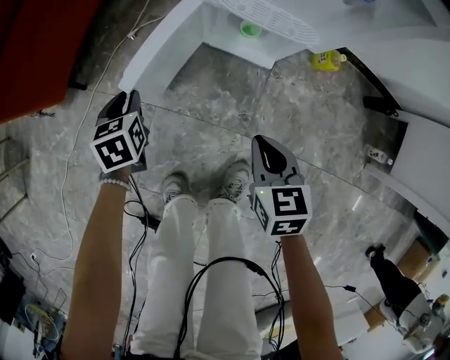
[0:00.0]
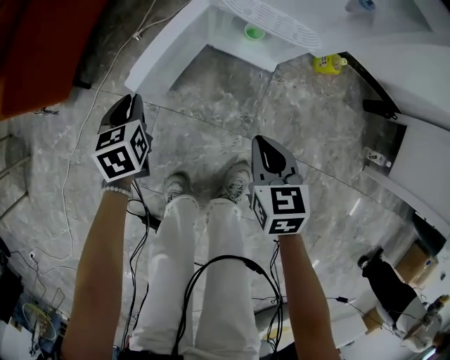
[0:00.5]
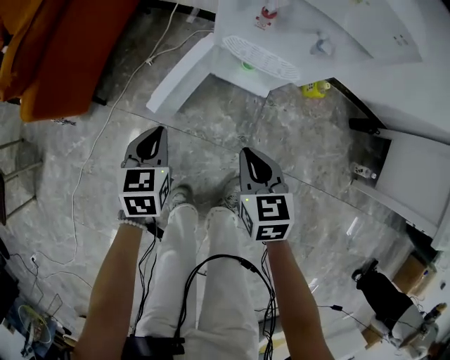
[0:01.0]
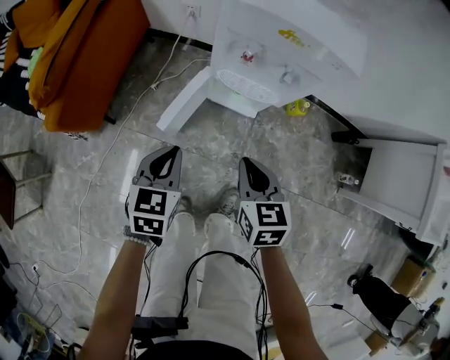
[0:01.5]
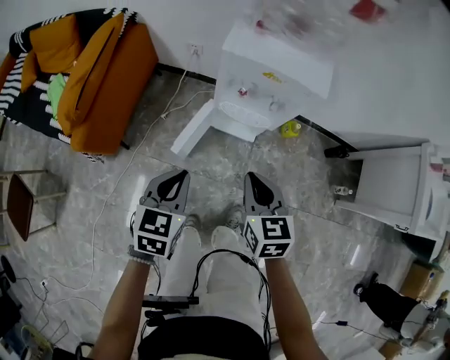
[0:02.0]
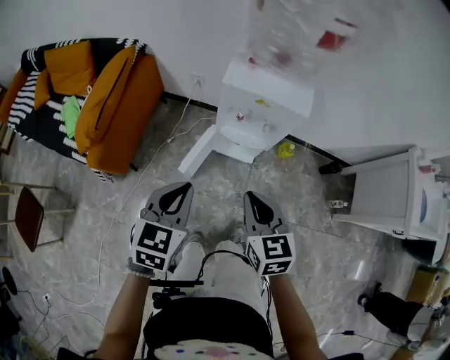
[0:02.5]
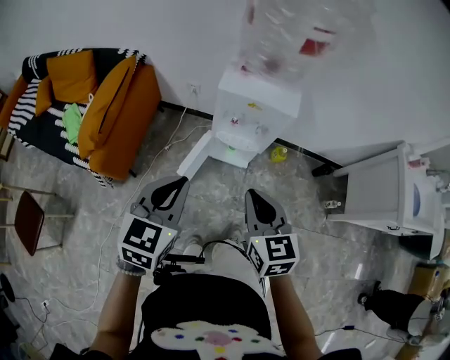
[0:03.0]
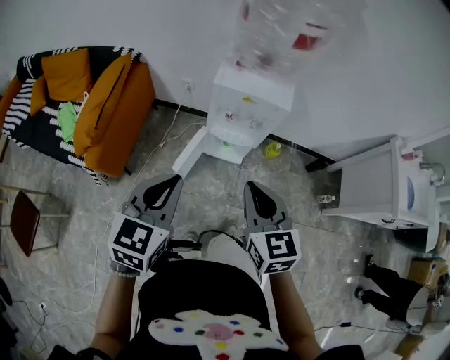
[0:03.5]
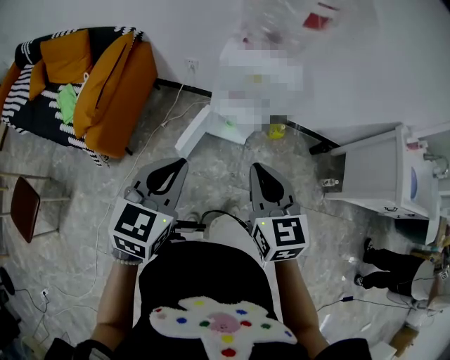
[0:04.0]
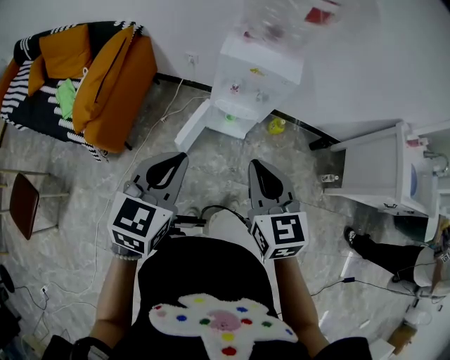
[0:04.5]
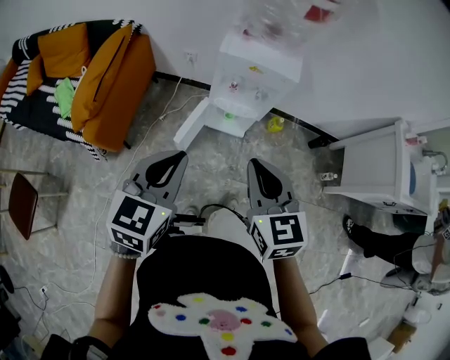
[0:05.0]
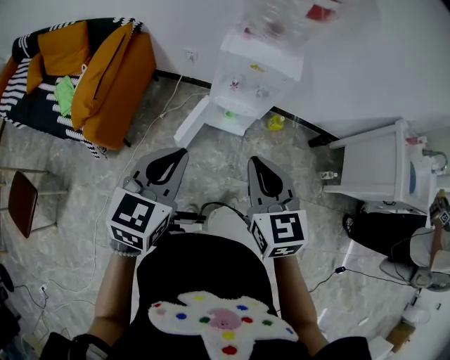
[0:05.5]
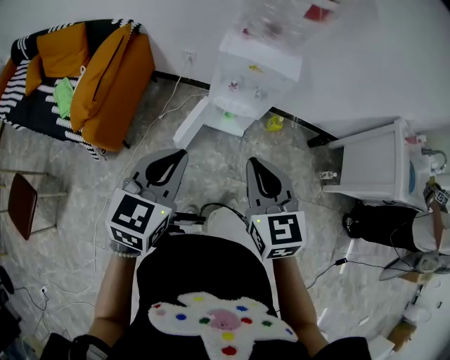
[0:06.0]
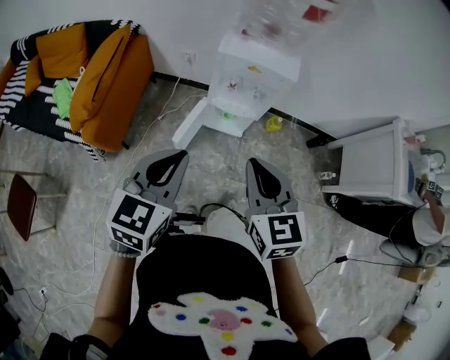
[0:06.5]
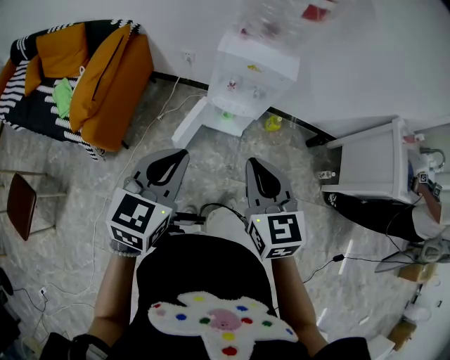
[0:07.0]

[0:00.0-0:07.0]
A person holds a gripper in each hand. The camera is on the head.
0:00.0 to 0:02.0: Both grippers move upward, approximately 35 cm. The left gripper rotates some 30 degrees.
0:02.0 to 0:03.5: Both grippers travel together upward, approximately 20 cm.
0:03.5 to 0:05.0: The grippers stay close to where they were, moving slightly.
0:05.0 to 0:07.0: Neither gripper changes place.

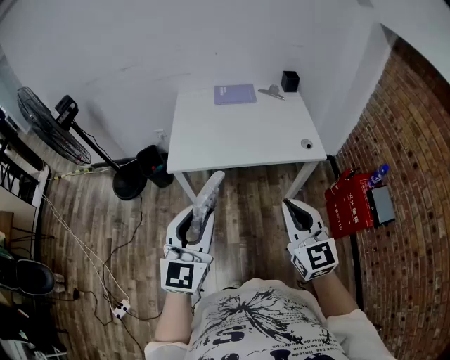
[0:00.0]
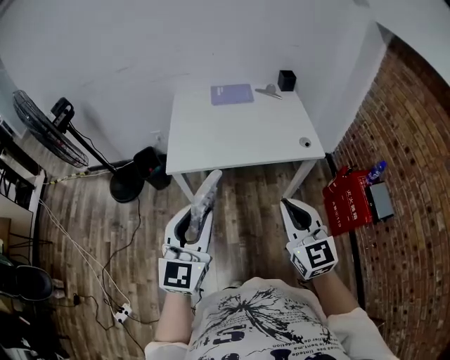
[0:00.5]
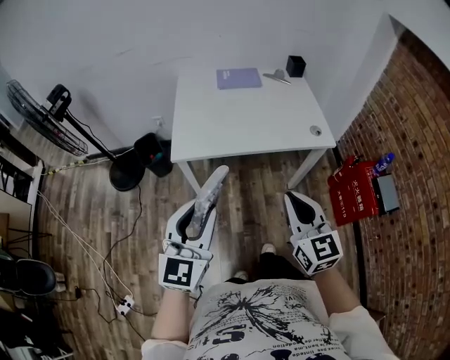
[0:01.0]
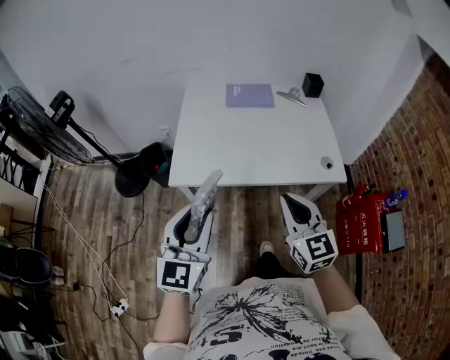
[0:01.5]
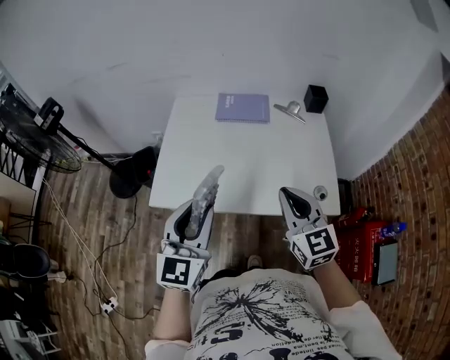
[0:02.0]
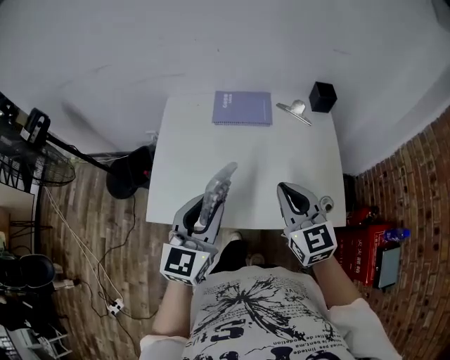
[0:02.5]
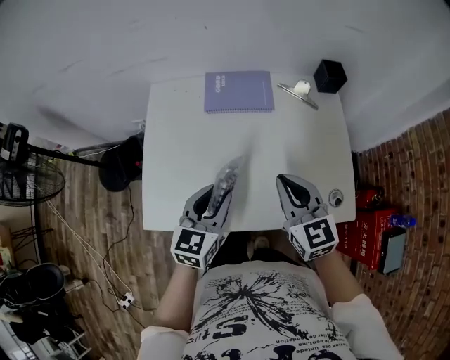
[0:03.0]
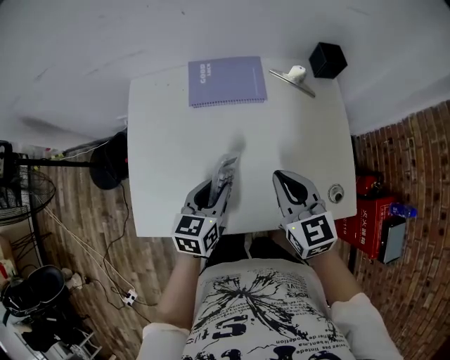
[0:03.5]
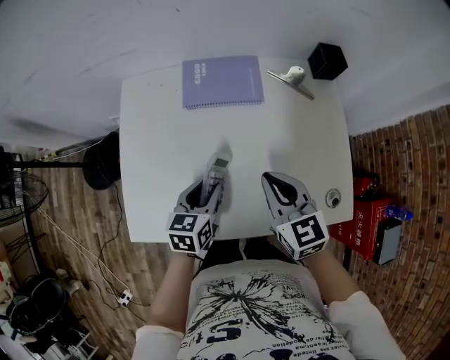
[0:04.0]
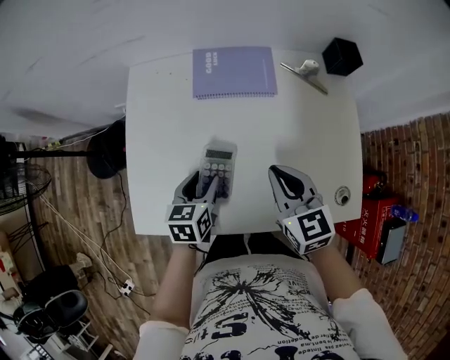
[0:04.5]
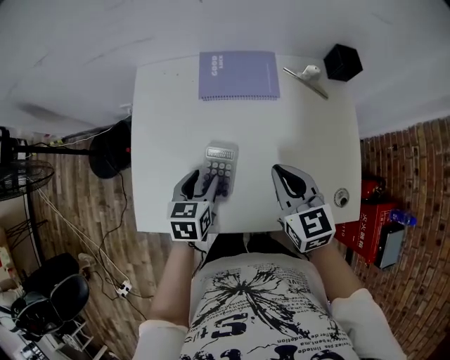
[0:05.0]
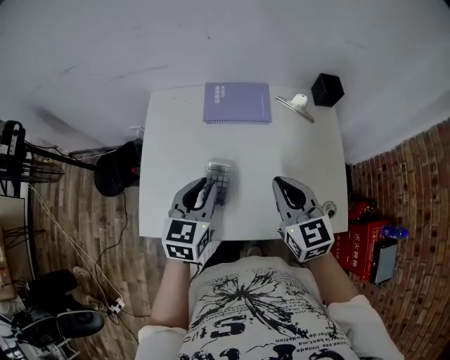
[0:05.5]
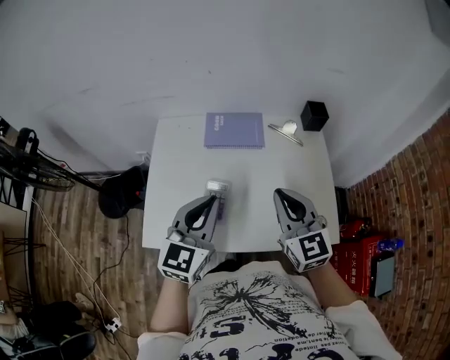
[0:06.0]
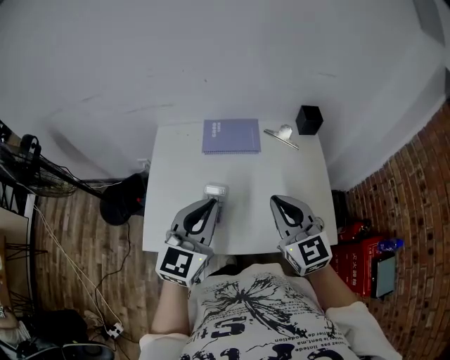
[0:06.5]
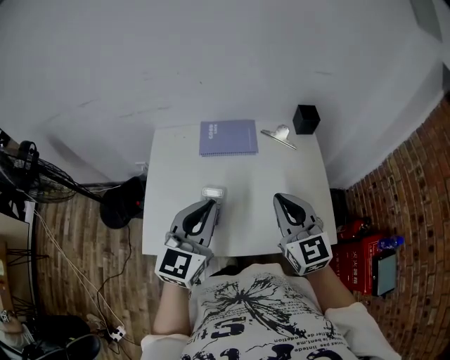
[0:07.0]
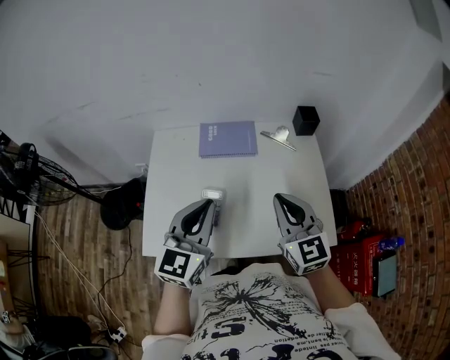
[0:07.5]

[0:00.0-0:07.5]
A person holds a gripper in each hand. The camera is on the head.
0:00.0 to 0:02.0: Both grippers travel together forward, about 30 cm.
0:02.0 to 0:04.0: Both grippers travel together forward and downward, about 30 cm. The left gripper tilts its fingers approximately 30 degrees downward.
0:04.0 to 0:05.5: The right gripper is displaced upward by about 5 cm; the left gripper travels upward by some 15 cm.
0:05.5 to 0:07.5: The left gripper is displaced upward by about 15 cm, and rotates roughly 20 degrees. The right gripper shifts approximately 10 cm upward.

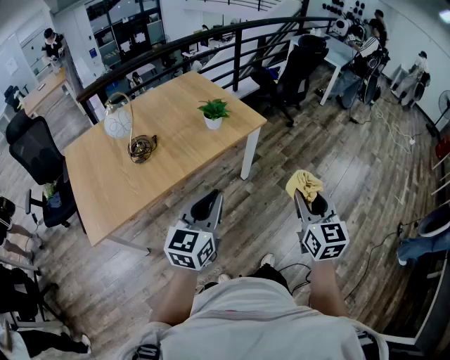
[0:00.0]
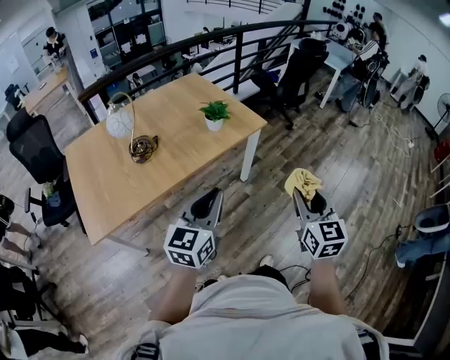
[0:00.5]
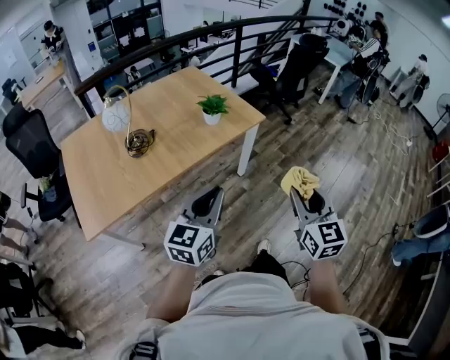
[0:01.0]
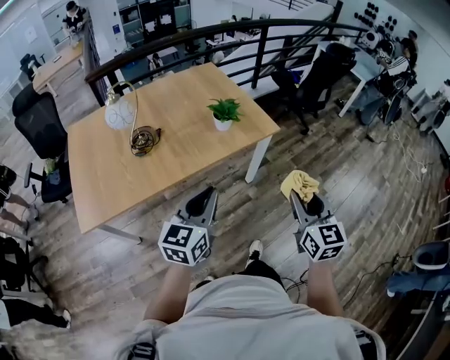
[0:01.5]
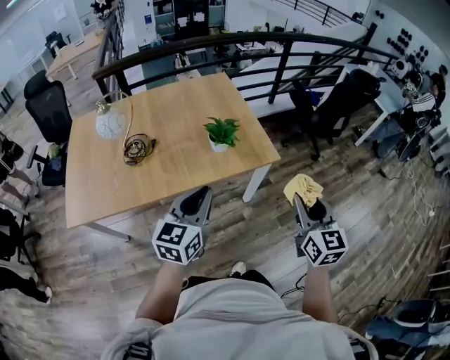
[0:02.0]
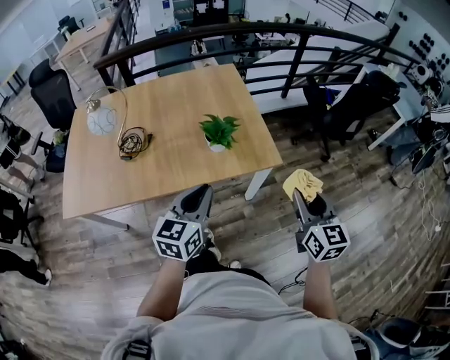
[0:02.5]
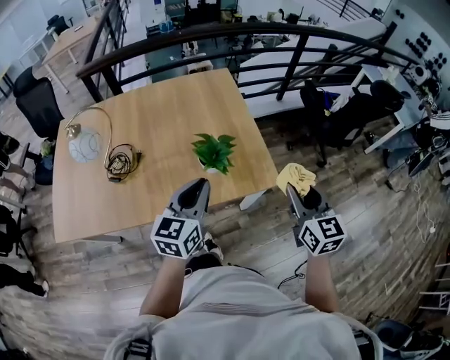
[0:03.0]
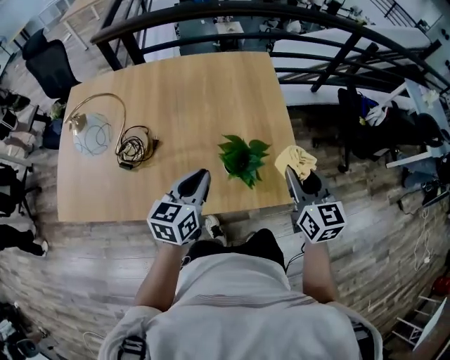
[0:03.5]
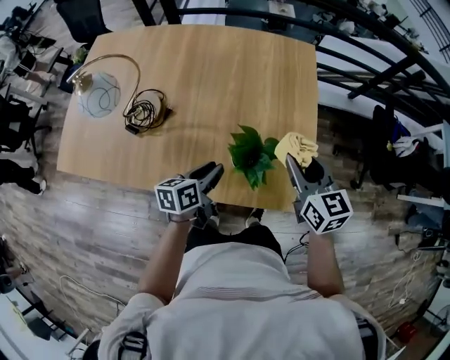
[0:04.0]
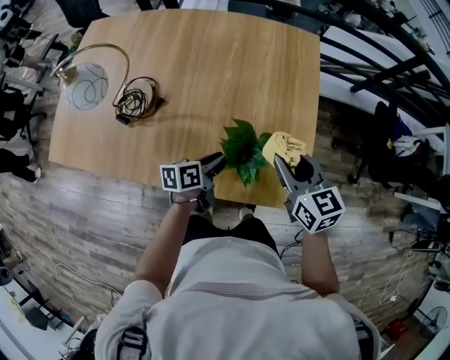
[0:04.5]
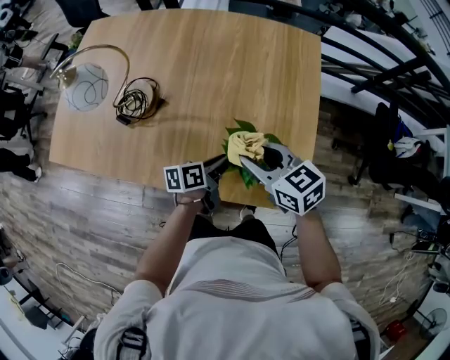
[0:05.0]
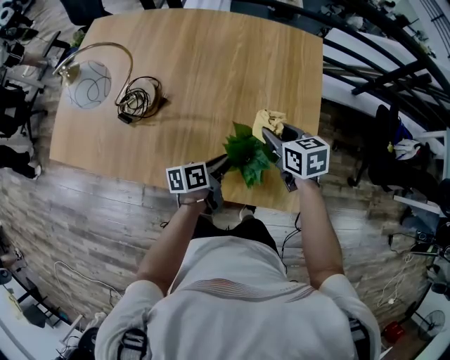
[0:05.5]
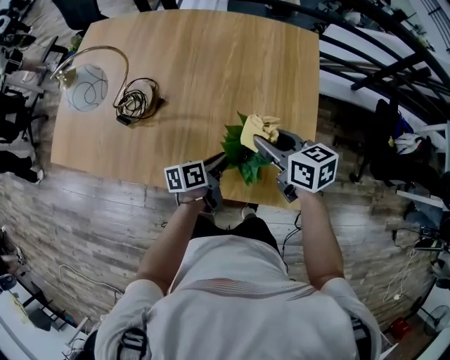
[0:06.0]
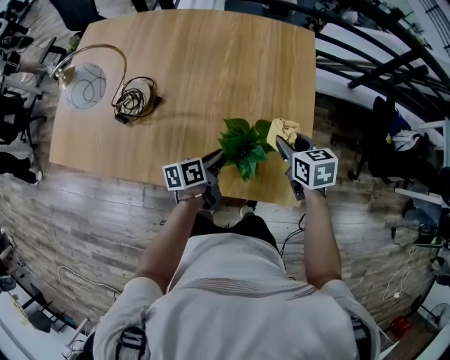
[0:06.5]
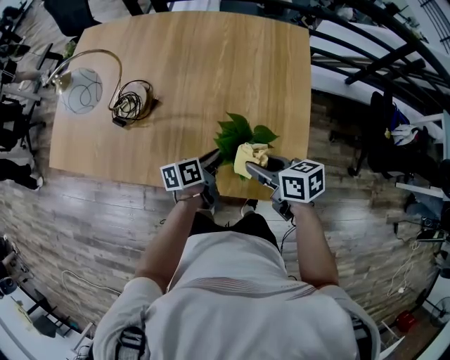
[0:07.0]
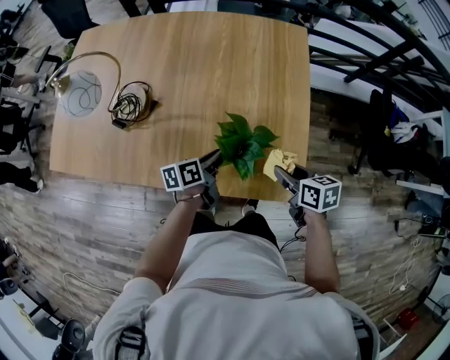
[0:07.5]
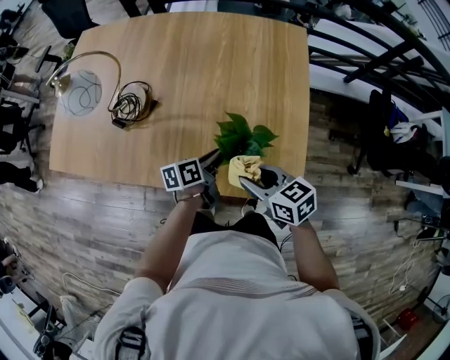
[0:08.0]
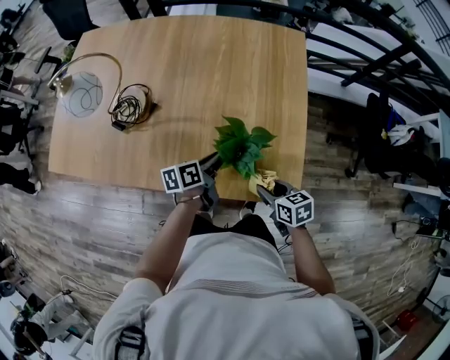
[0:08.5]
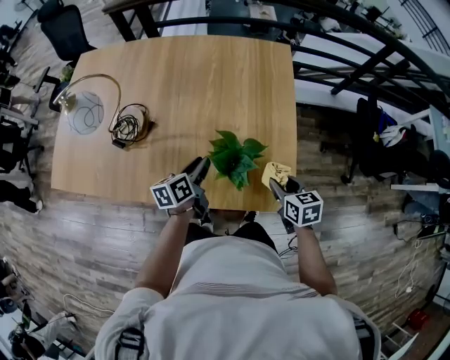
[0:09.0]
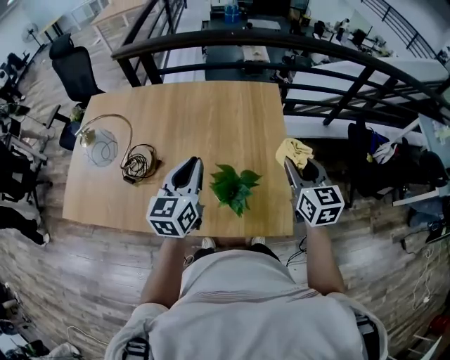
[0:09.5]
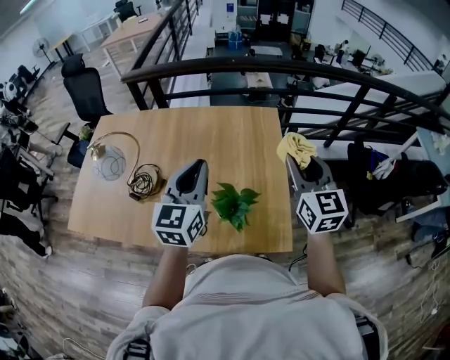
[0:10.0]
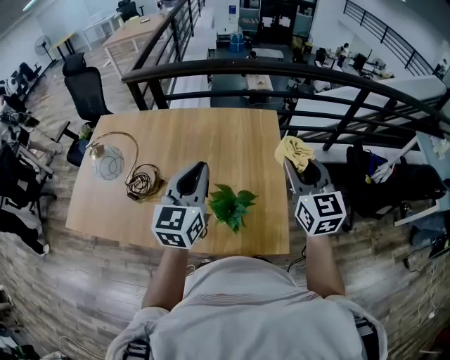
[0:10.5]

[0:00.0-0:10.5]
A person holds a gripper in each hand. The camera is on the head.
0:00.0 to 0:02.0: The grippers both shift forward by about 25 cm. The right gripper turns by approximately 20 degrees.
0:02.0 to 0:04.0: The right gripper ends up some 50 cm from where it was, and changes its angle by about 40 degrees; the left gripper shifts by some 35 cm, and rolls counterclockwise, seen from behind, by about 50 degrees.
0:04.0 to 0:06.5: The left gripper goes approximately 5 cm downward, while the right gripper shifts roughly 10 cm downward, reaches roughly 10 cm to the left, then returns, and rotates about 20 degrees.
0:06.5 to 0:08.5: The right gripper is displaced backward and downward by approximately 15 cm.
0:08.5 to 0:10.5: The left gripper goes roughly 35 cm upward, and twists approximately 60 degrees clockwise, seen from behind, while the right gripper is displaced upward and forward by roughly 40 cm, and points its fingers roughly 40 degrees further upward.

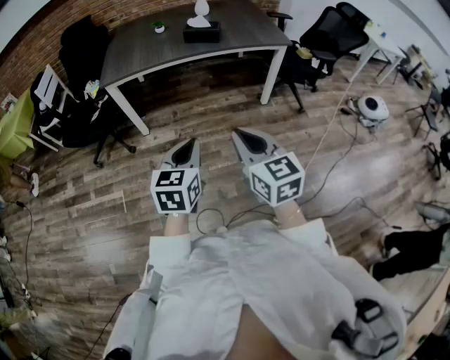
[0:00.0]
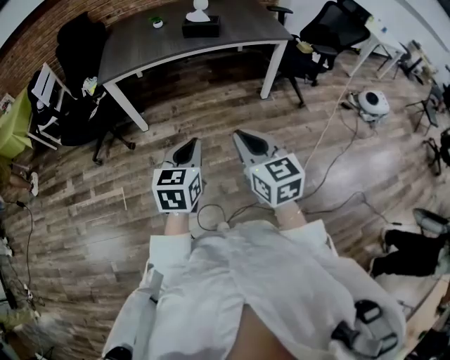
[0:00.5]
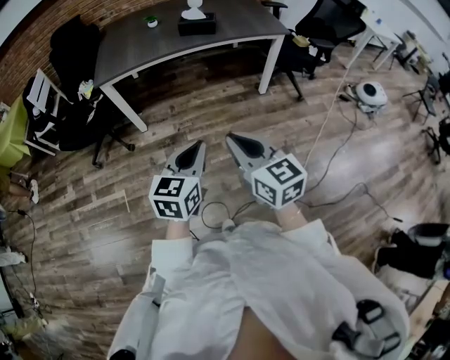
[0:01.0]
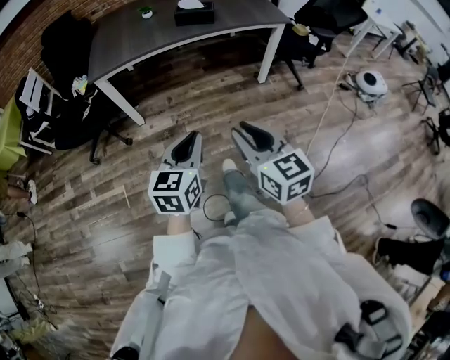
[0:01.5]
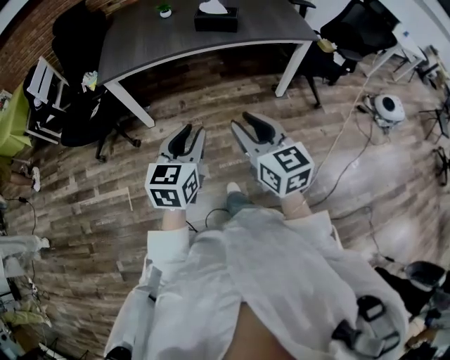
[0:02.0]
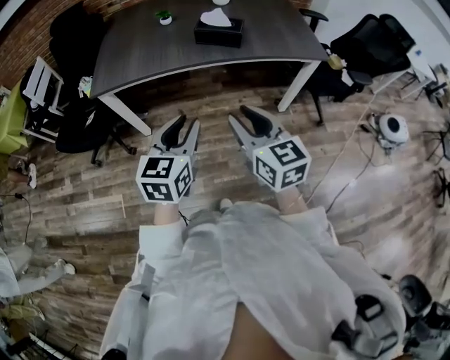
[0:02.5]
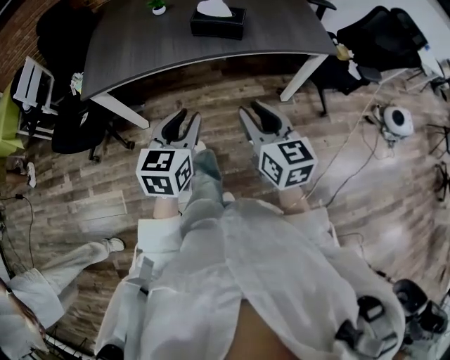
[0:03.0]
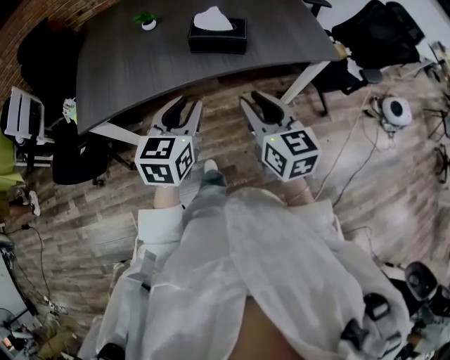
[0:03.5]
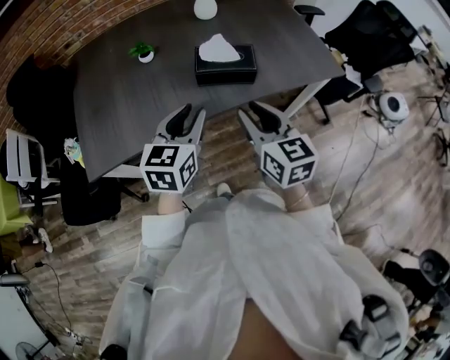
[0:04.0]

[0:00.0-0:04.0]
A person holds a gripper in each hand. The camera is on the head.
0:00.0 to 0:02.0: The grippers both shift forward by roughly 15 cm. The left gripper opens up. Meanwhile the right gripper opens.
0:02.0 to 0:04.0: Both grippers are carried forward, approximately 50 cm.
